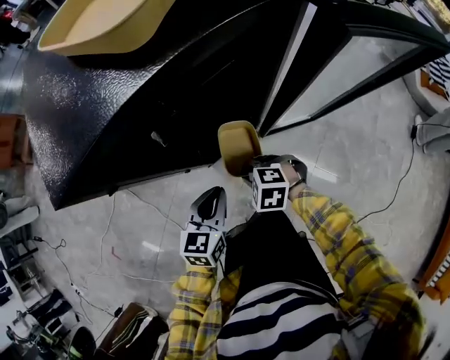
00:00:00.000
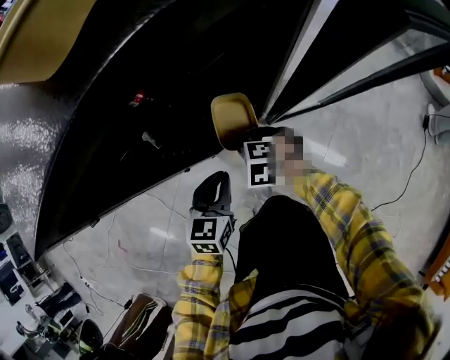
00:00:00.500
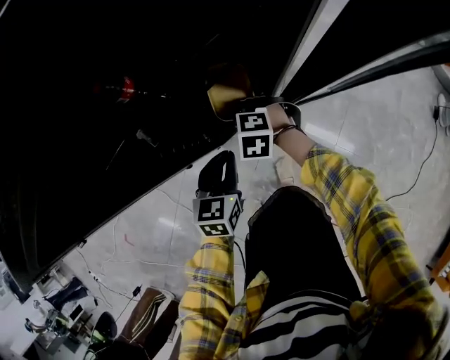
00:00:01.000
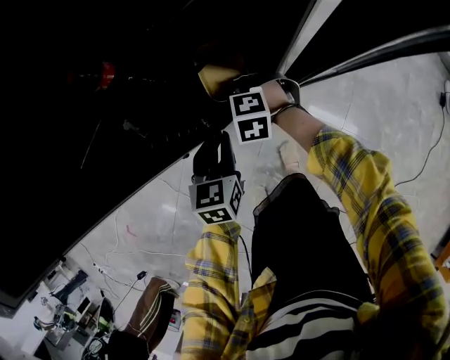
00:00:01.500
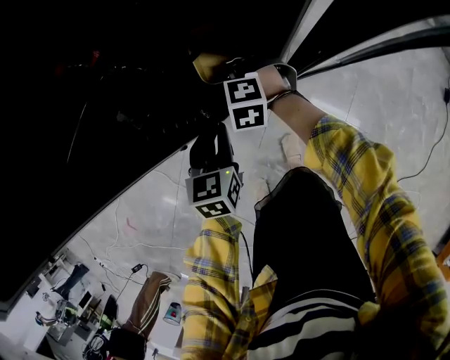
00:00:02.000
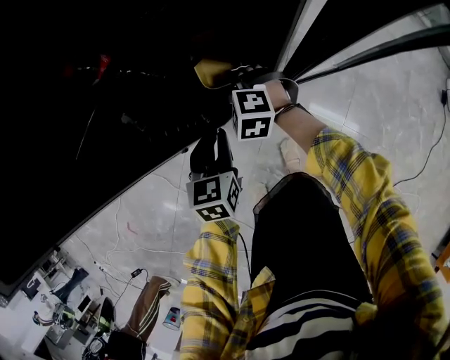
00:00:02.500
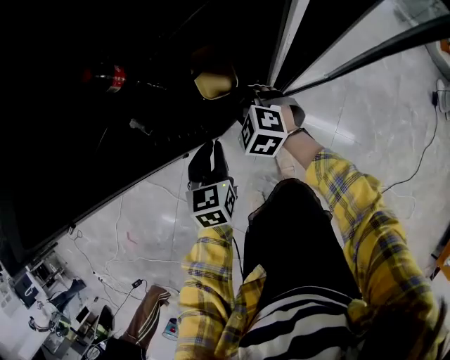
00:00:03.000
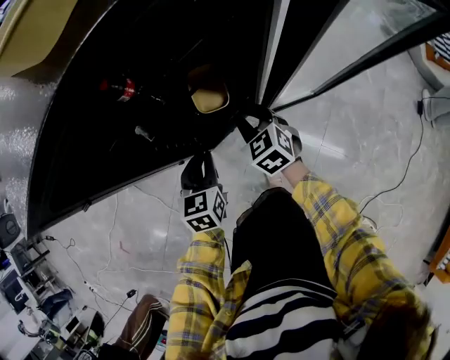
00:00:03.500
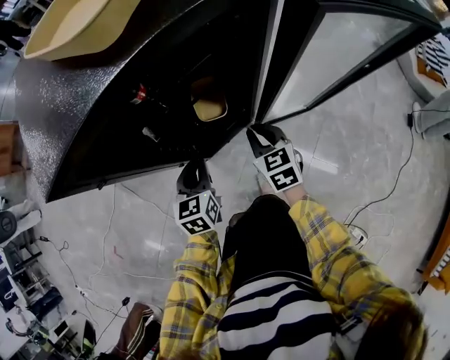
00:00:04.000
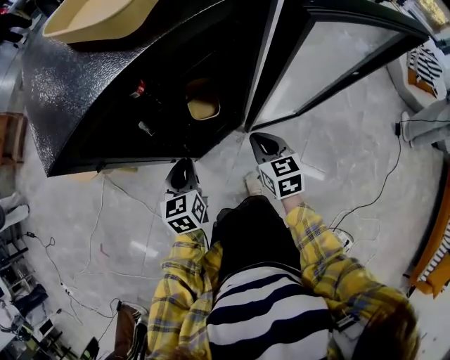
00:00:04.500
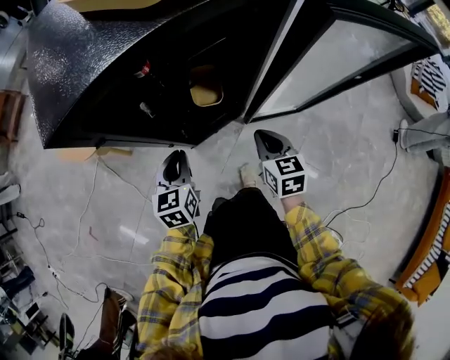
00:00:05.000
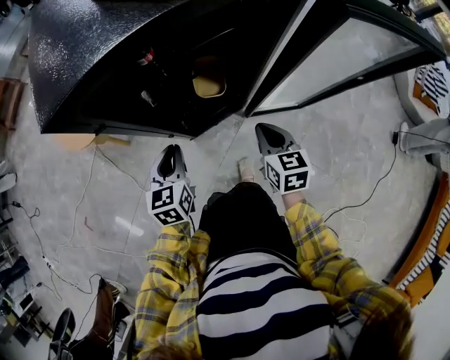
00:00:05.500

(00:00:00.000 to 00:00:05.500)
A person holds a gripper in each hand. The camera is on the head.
00:00:00.000 - 00:00:02.000: The left gripper moves downward and forward, roughly 15 cm. Meanwhile the right gripper moves forward and downward, approximately 20 cm.
00:00:02.000 - 00:00:03.500: The left gripper changes place by about 5 cm, while the right gripper moves upward and to the right, approximately 10 cm, and rolls clockwise, seen from behind, by some 40 degrees.
00:00:03.500 - 00:00:05.500: The right gripper heads backward, upward and to the right, covering approximately 15 cm, and rotates roughly 20 degrees. Meanwhile the left gripper goes roughly 10 cm upward and to the left.

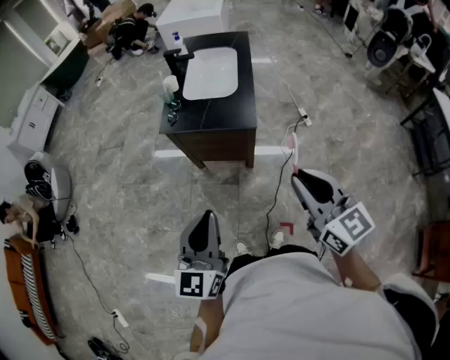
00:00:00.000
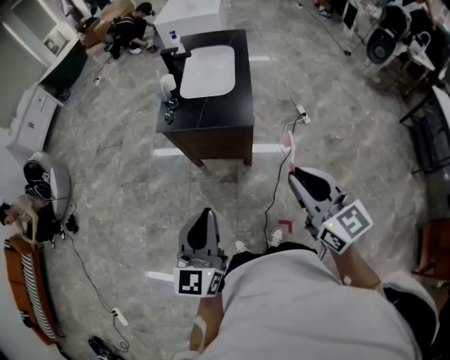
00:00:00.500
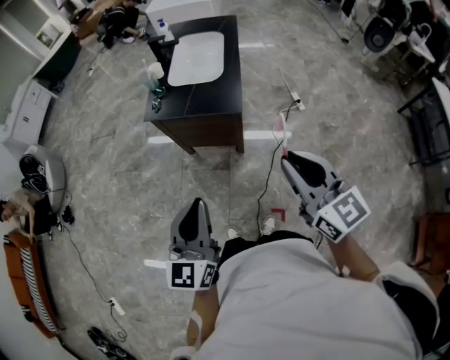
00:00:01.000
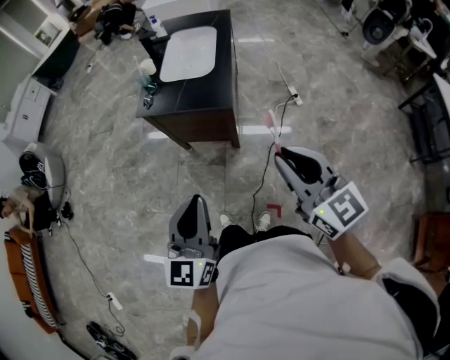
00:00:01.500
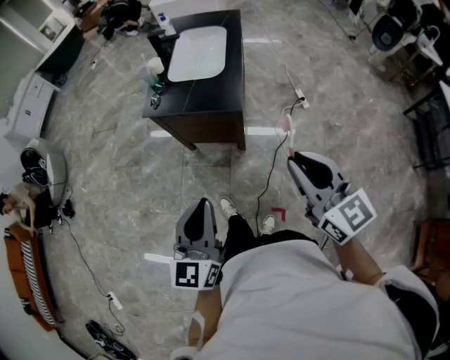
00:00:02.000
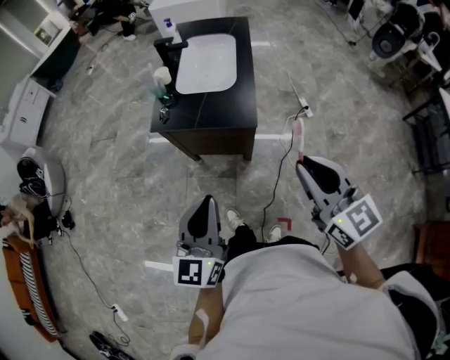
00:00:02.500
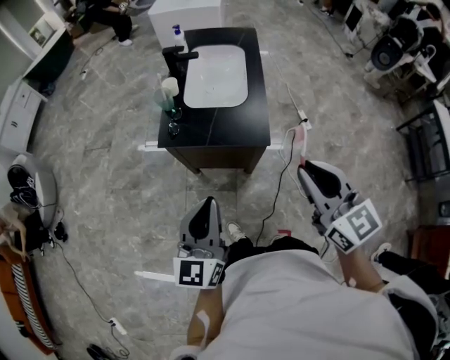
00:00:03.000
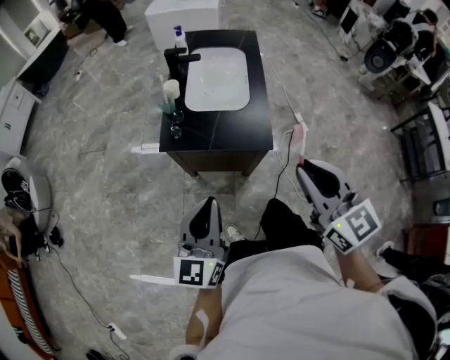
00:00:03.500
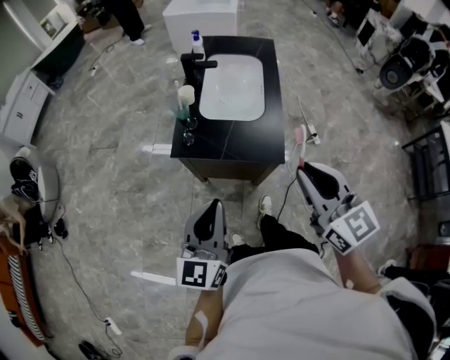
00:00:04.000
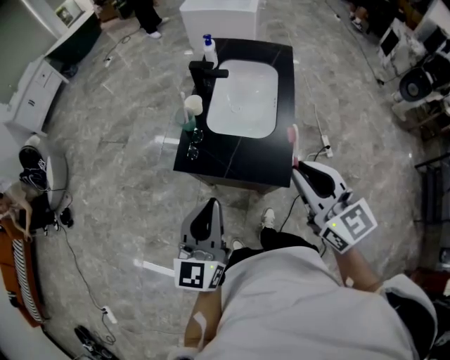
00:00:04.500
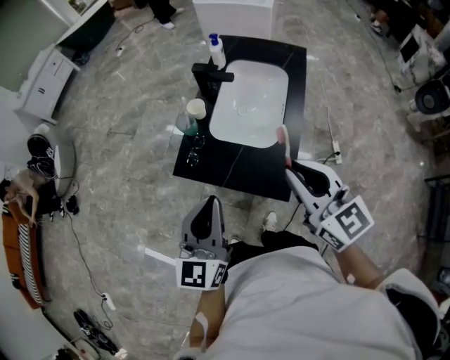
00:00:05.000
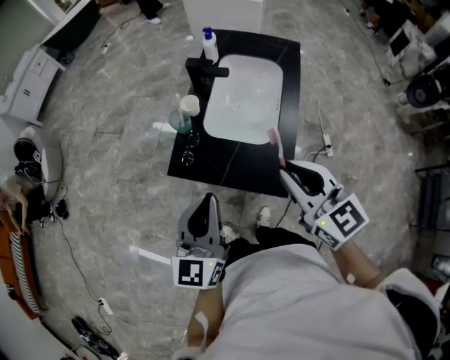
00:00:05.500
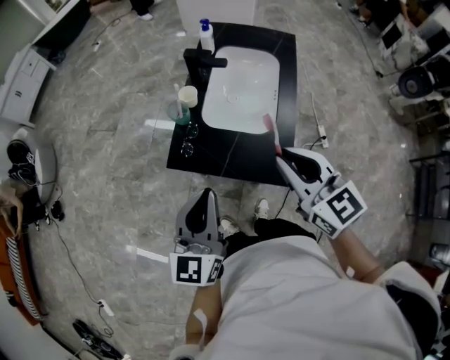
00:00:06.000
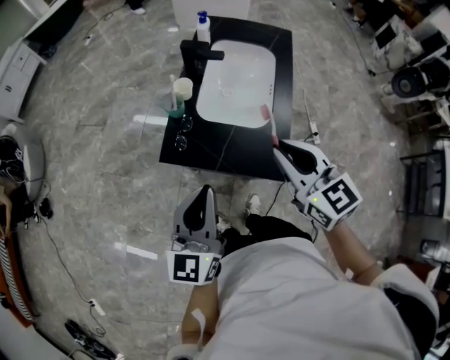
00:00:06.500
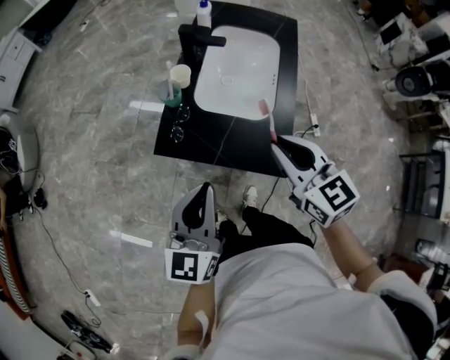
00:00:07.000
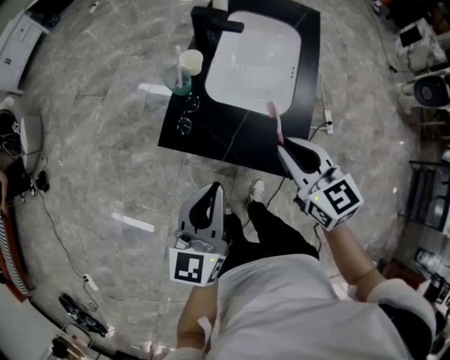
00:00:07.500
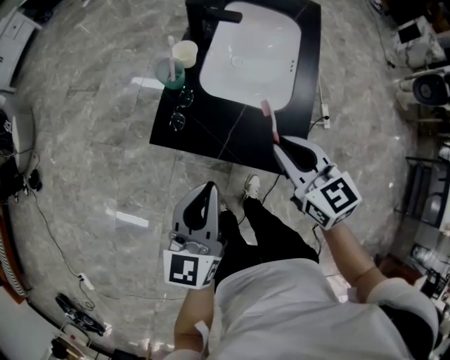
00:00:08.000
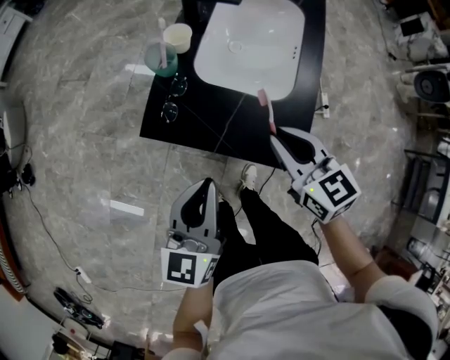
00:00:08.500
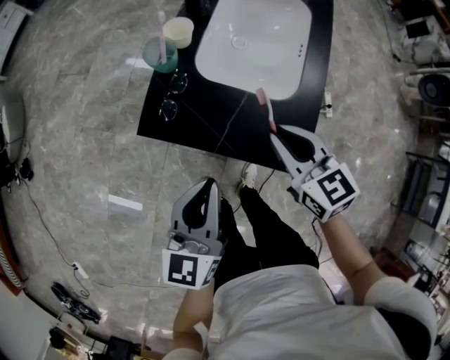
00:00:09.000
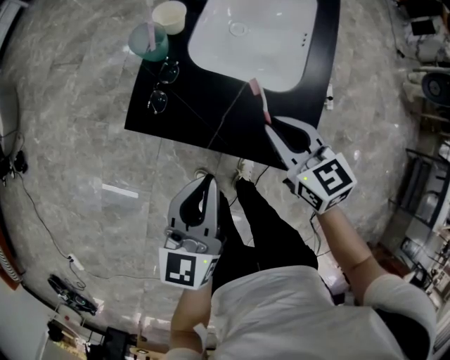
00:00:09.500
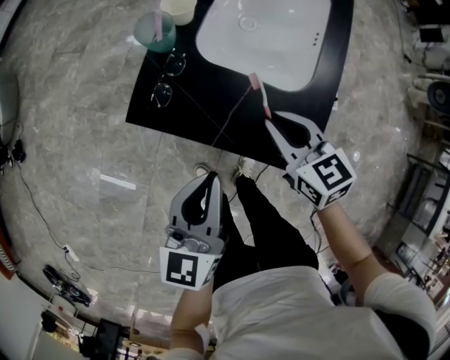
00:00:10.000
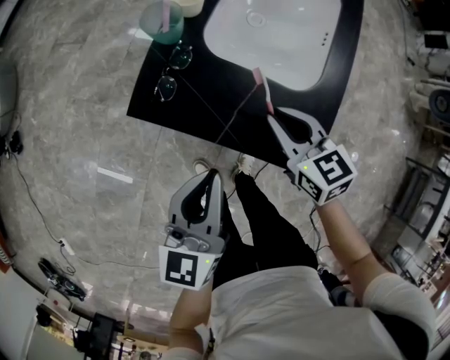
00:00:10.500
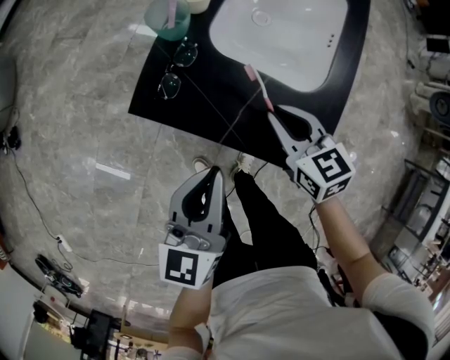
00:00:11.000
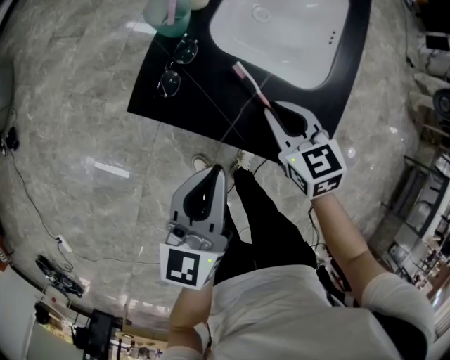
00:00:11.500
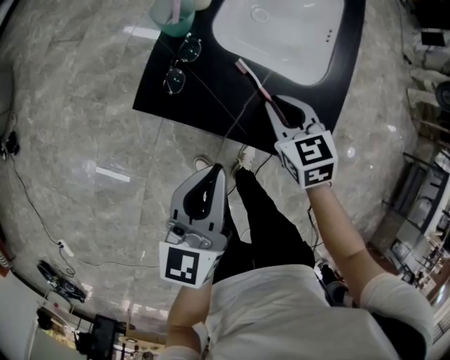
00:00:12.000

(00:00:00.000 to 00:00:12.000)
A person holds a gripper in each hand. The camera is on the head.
00:00:00.000 - 00:00:02.000: Both grippers travel together to the right, some 5 cm.
00:00:02.000 - 00:00:04.000: The grippers both shift forward and to the left by some 25 cm.
00:00:04.000 - 00:00:06.000: Both grippers travel together forward, approximately 15 cm.
00:00:06.000 - 00:00:08.000: The grippers both shift downward by roughly 10 cm.
00:00:08.000 - 00:00:10.000: The right gripper shifts about 10 cm downward, while the left gripper is displaced downward by roughly 10 cm.
00:00:10.000 - 00:00:12.000: The right gripper moves downward, some 5 cm.

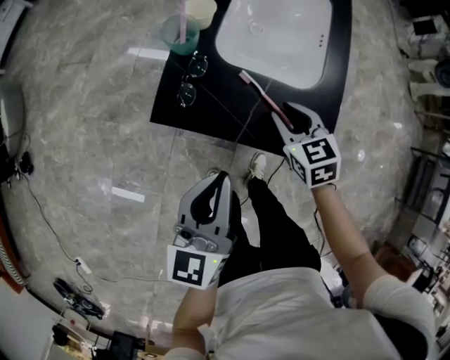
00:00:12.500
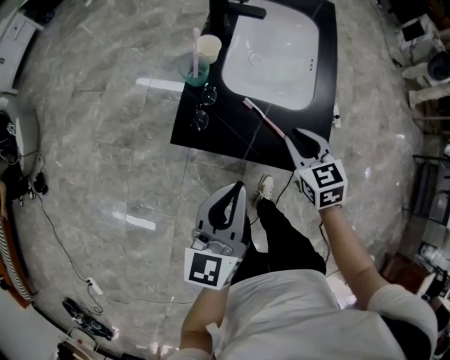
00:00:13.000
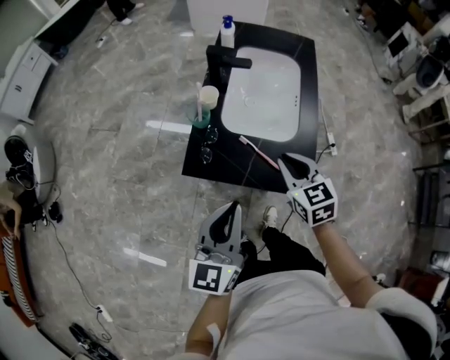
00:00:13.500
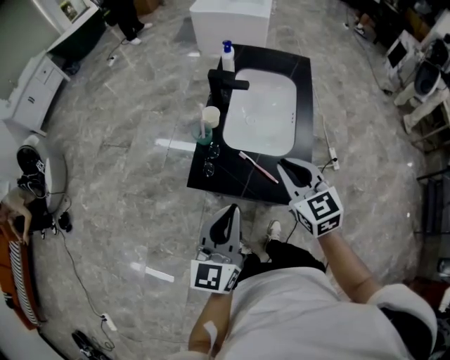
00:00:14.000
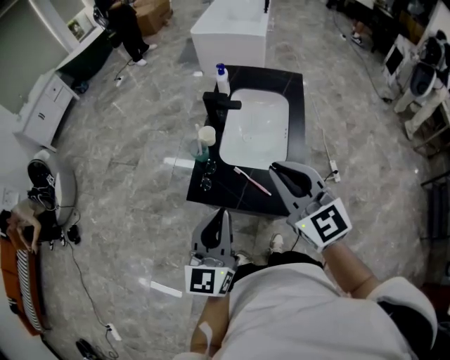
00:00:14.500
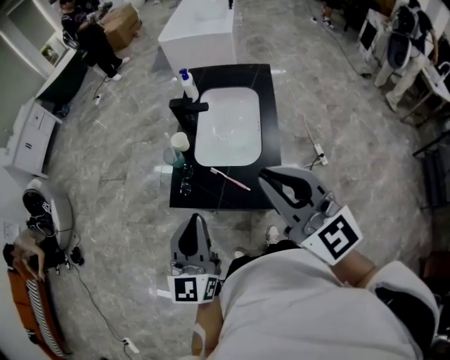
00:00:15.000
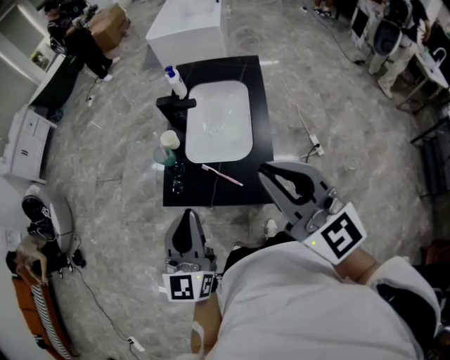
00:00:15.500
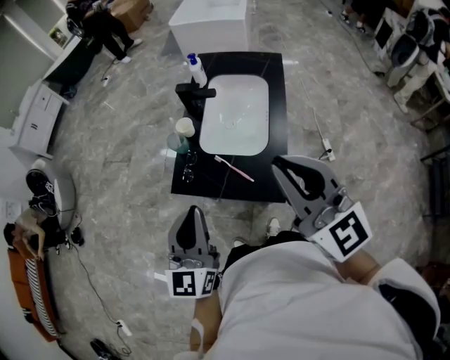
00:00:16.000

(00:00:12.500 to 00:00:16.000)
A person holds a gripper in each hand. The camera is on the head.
00:00:12.500 - 00:00:14.500: The right gripper travels upward by approximately 35 cm, points its fingers some 40 degrees further upward, and closes up. The left gripper is displaced upward by about 20 cm, and turns by about 20 degrees.
00:00:14.500 - 00:00:16.000: The right gripper moves to the right, upward and backward, some 10 cm.

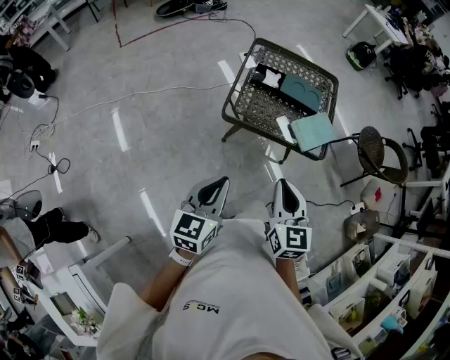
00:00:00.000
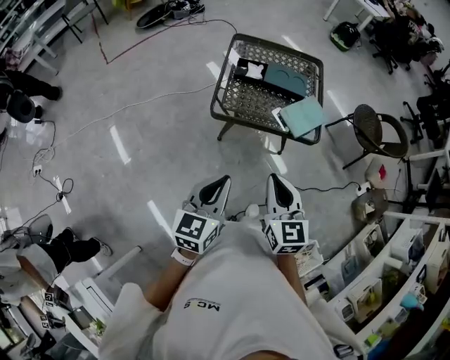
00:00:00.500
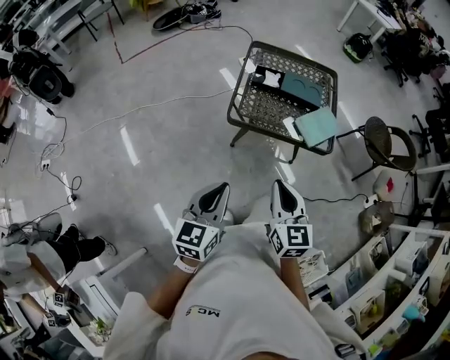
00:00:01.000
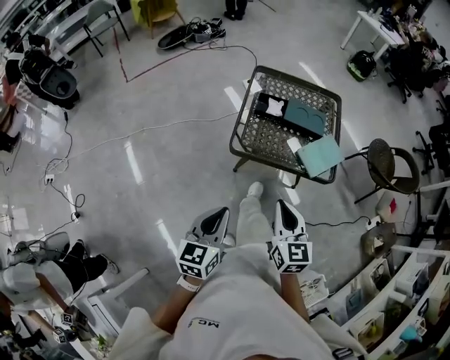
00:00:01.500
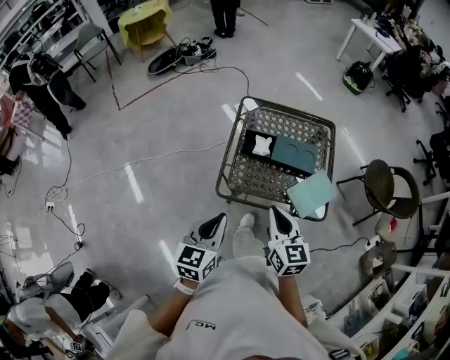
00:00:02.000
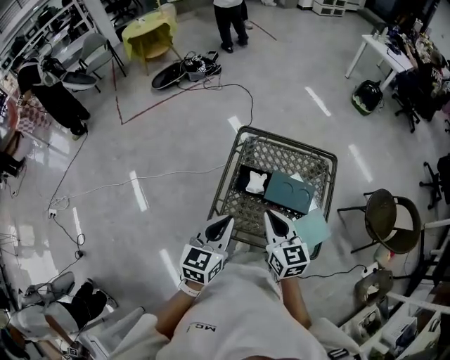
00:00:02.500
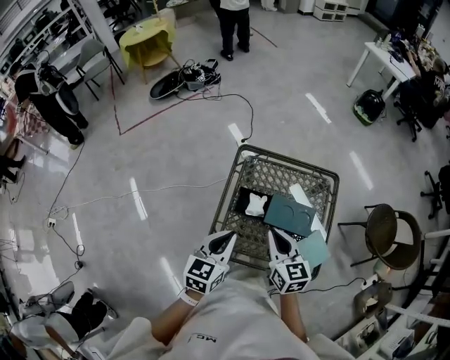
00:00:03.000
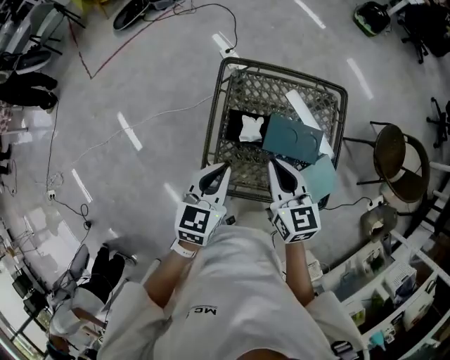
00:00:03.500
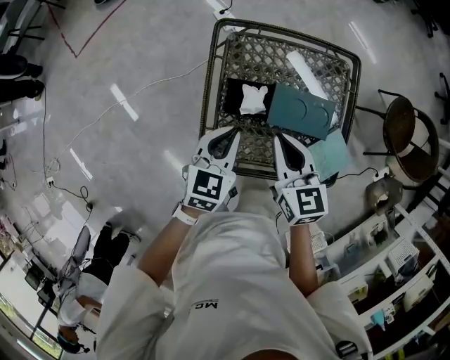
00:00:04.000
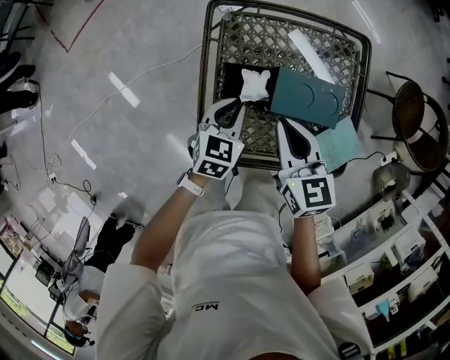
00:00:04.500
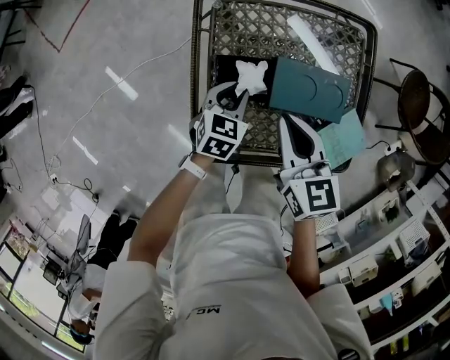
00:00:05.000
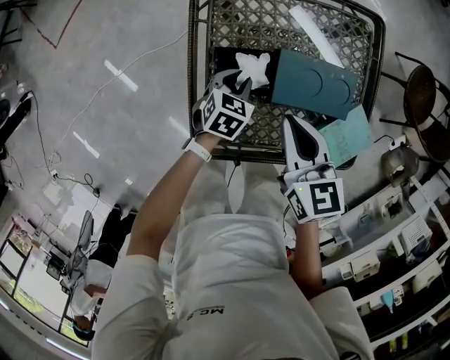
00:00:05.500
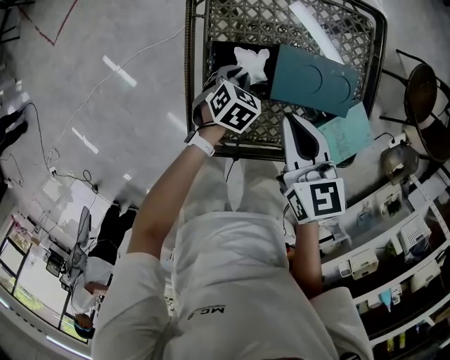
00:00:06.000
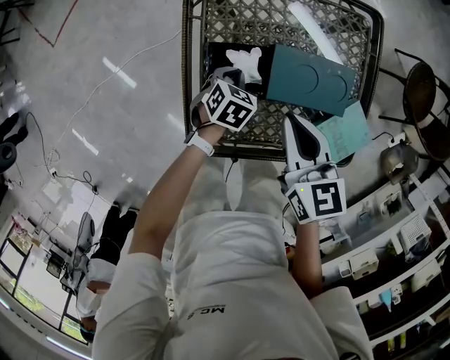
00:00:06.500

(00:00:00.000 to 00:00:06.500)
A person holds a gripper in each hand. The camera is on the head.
00:00:00.000 - 00:00:02.000: Both grippers move forward, some 20 cm.
00:00:02.000 - 00:00:04.500: The grippers both shift forward and downward by roughly 35 cm. The left gripper swivels roughly 30 degrees.
00:00:04.500 - 00:00:06.500: The left gripper travels downward by roughly 15 cm, and turns by approximately 20 degrees. The right gripper shifts by about 5 cm.
